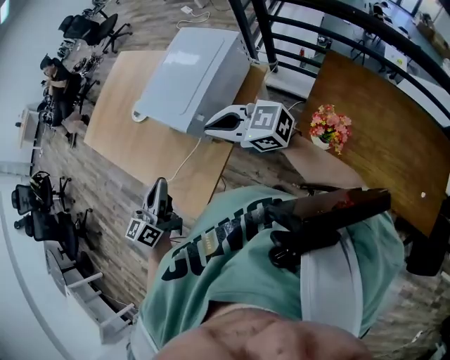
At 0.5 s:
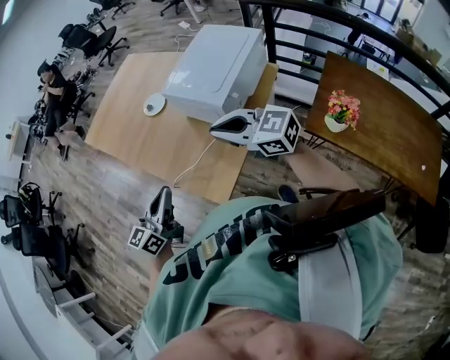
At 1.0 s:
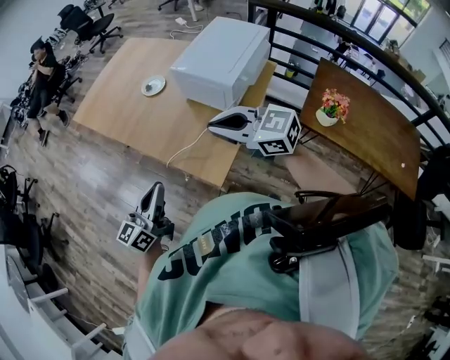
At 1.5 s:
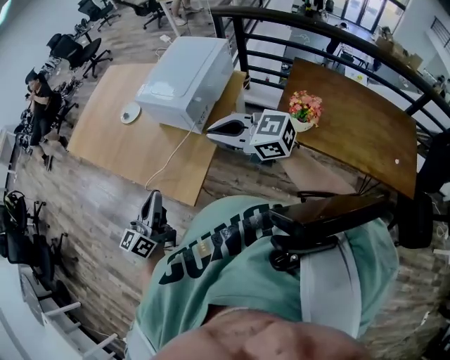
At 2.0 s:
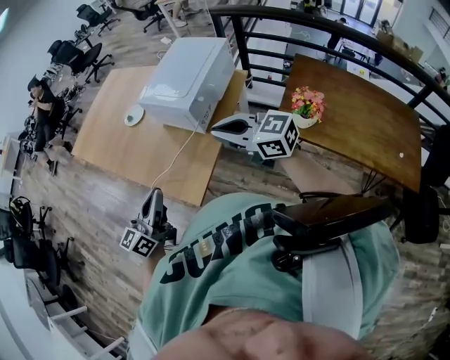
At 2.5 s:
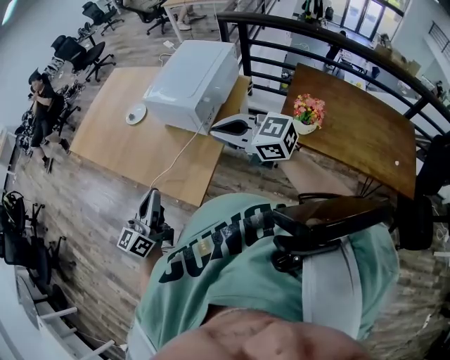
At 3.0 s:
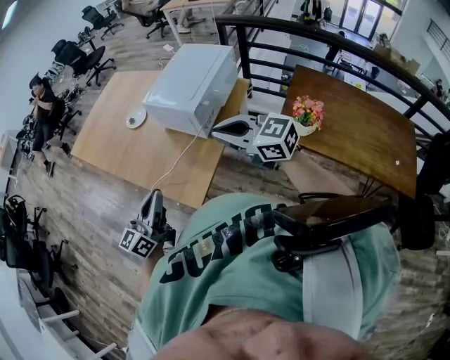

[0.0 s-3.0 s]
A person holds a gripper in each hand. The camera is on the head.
0.0 to 1.5 s: The left gripper travels to the left and backward by roughly 20 cm. The right gripper is displaced backward and to the left by some 15 cm.
1.5 to 3.0 s: The grippers make only small movements.

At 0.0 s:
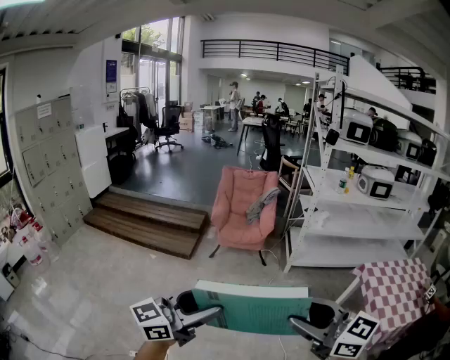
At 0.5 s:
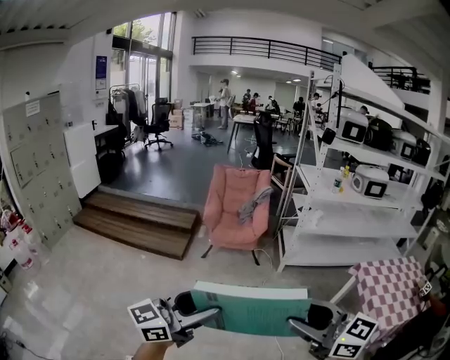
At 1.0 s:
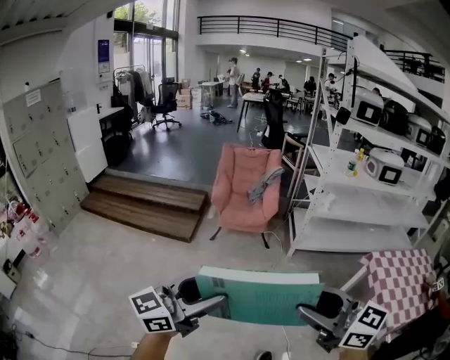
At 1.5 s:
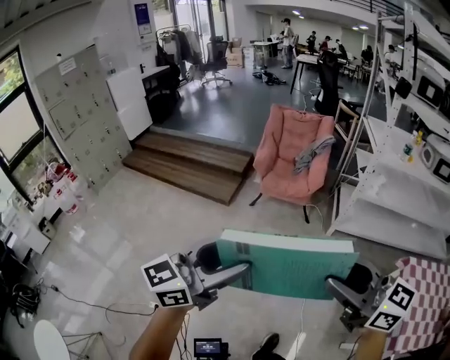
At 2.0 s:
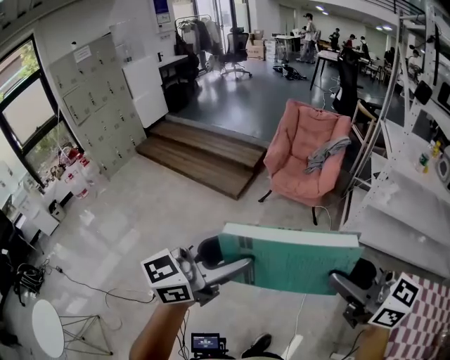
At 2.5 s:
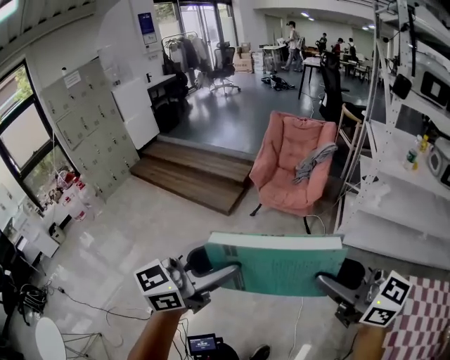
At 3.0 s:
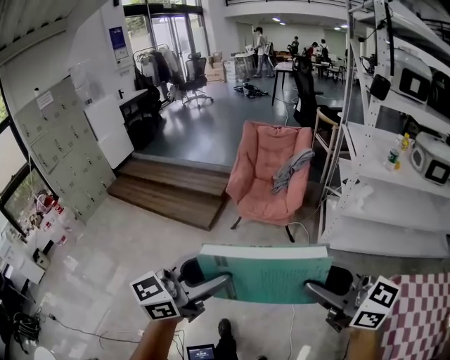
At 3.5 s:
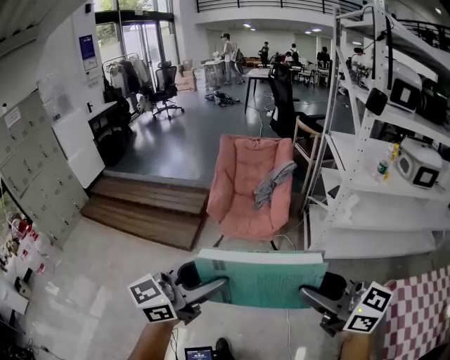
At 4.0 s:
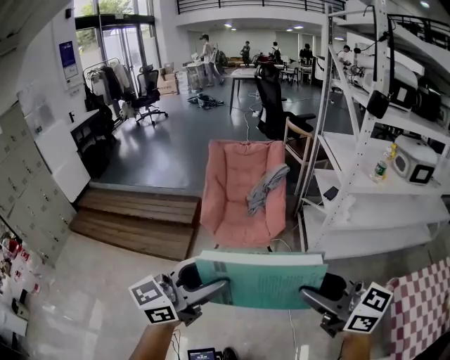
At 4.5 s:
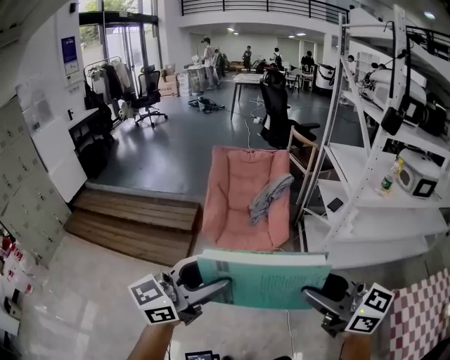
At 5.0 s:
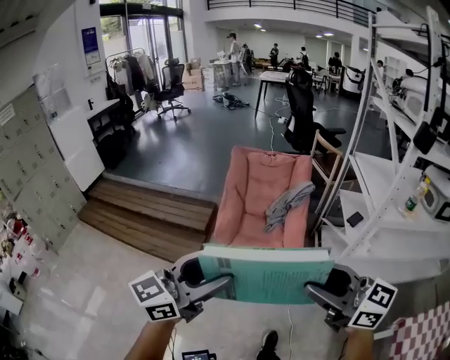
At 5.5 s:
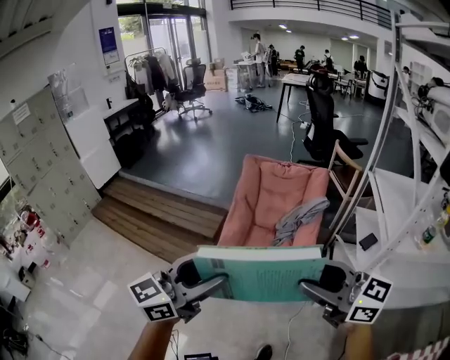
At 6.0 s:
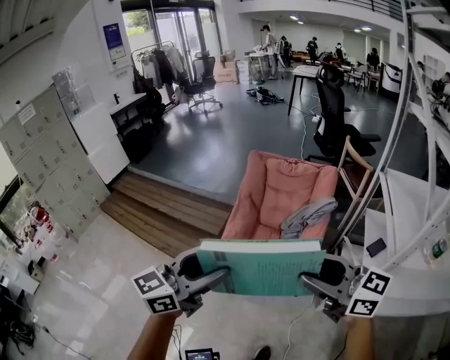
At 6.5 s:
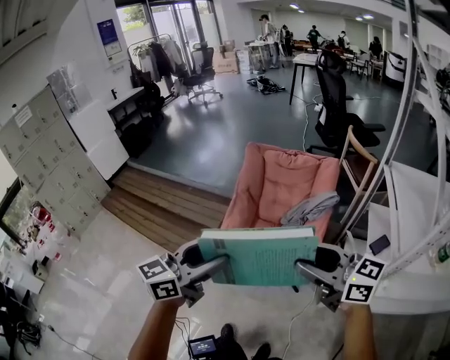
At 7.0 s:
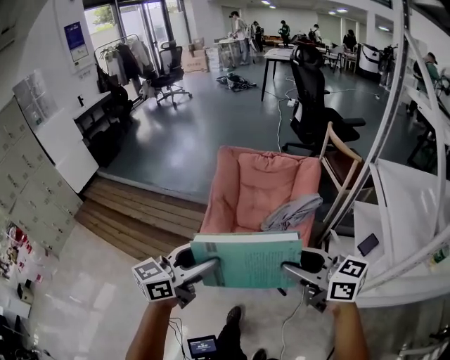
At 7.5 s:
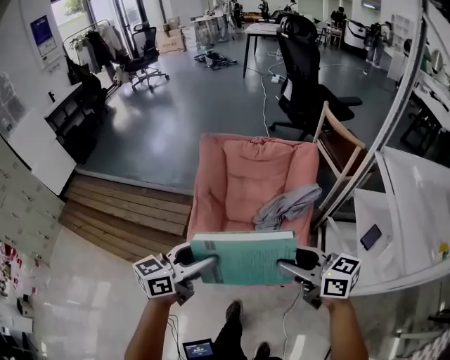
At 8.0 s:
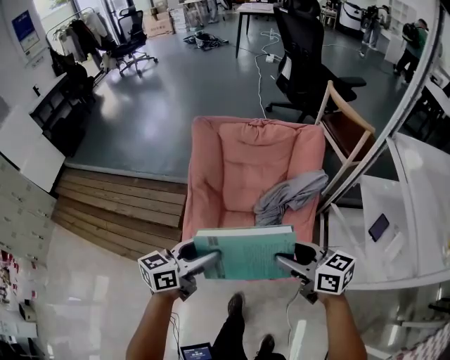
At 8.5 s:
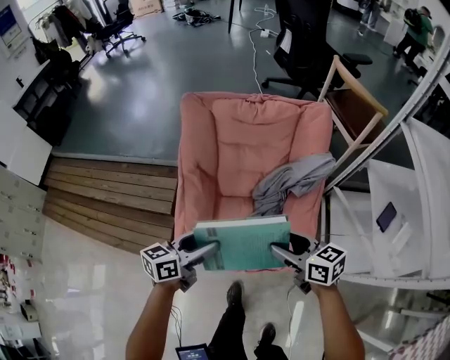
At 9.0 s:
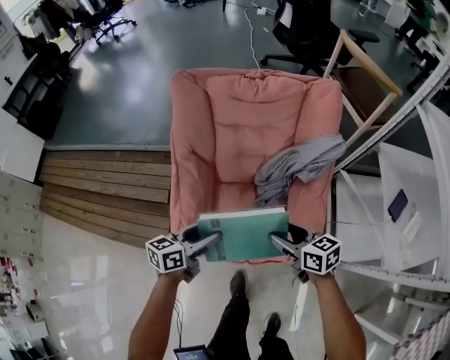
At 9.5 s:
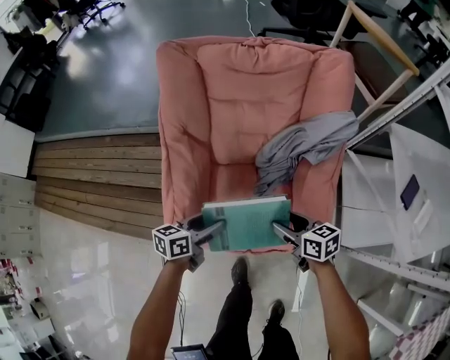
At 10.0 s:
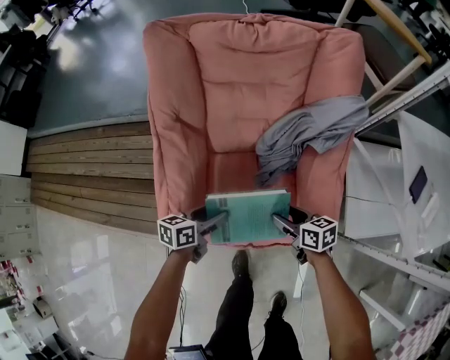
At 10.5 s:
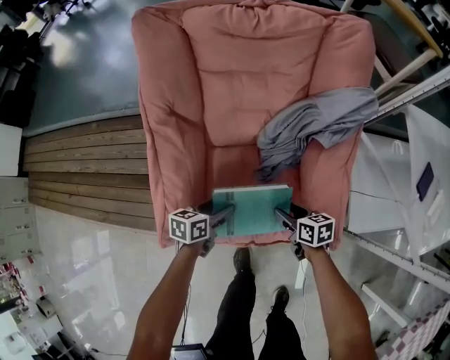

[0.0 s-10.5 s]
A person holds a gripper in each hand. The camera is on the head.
0.0 to 2.0 s: The grippers both shift forward by roughly 25 cm.
2.0 to 4.0 s: Both grippers move forward, about 30 cm.
4.0 to 6.5 s: The pair of grippers is taken forward, approximately 40 cm. The right gripper turns by roughly 20 degrees, while the left gripper changes its angle by approximately 20 degrees.
6.5 to 8.5 s: The grippers both shift downward and forward by approximately 50 cm. The left gripper rotates roughly 30 degrees, while the right gripper swivels about 30 degrees.
8.5 to 10.5 s: The two grippers go roughly 35 cm downward. The right gripper swivels roughly 30 degrees. The left gripper rotates roughly 30 degrees.

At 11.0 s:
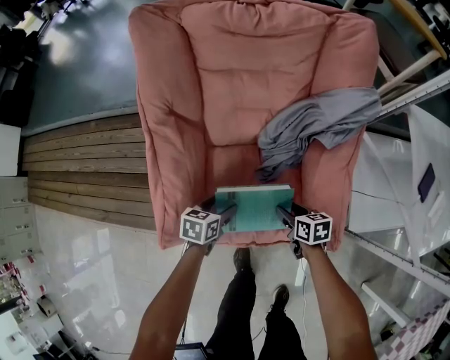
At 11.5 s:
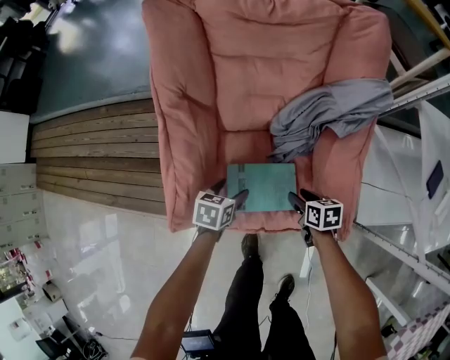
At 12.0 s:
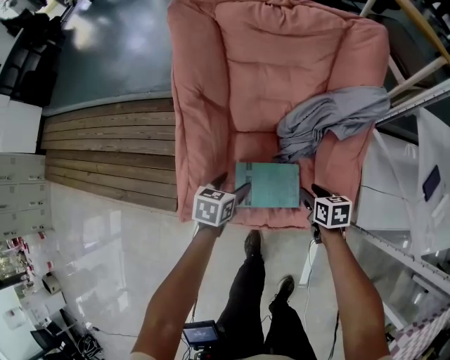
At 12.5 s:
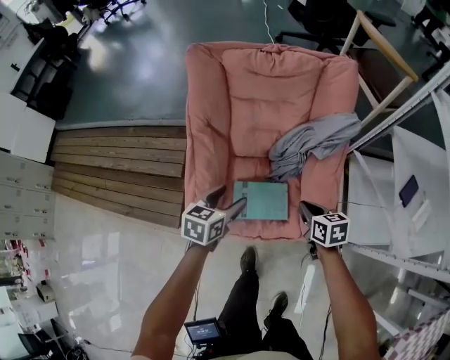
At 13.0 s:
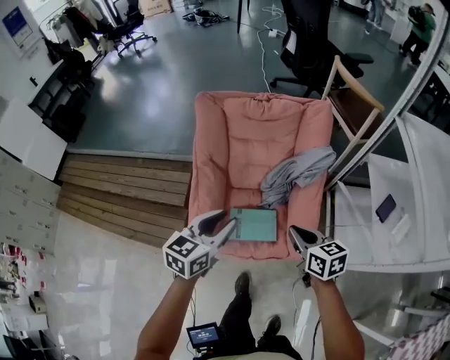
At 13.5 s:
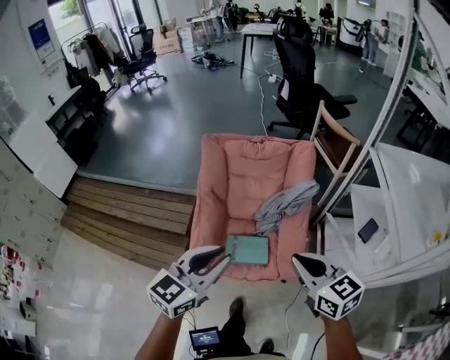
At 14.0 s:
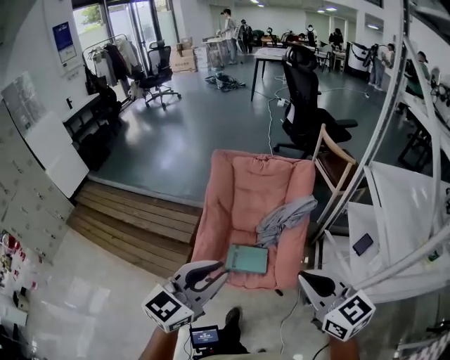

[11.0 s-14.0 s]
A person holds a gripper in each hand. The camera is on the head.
11.0 to 12.5 s: Both grippers move upward, some 25 cm. The right gripper closes its fingers.
12.5 to 14.0 s: Both grippers travel together upward and backward, some 50 cm. The left gripper tilts its fingers some 30 degrees upward, and closes, while the right gripper tips its fingers upward by approximately 30 degrees.

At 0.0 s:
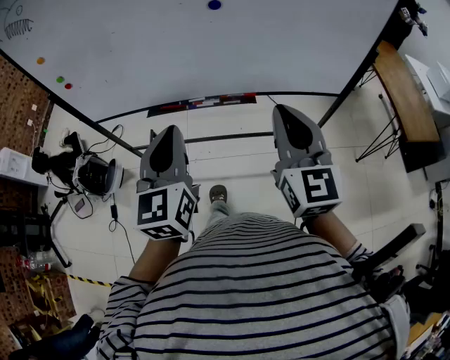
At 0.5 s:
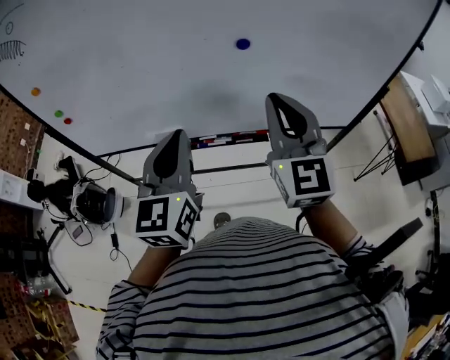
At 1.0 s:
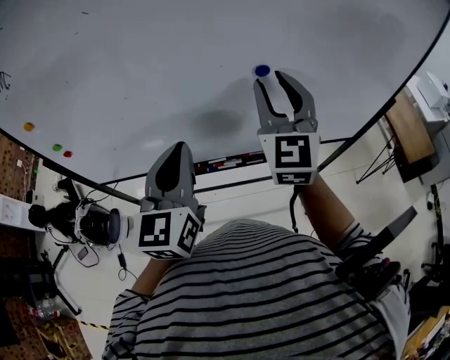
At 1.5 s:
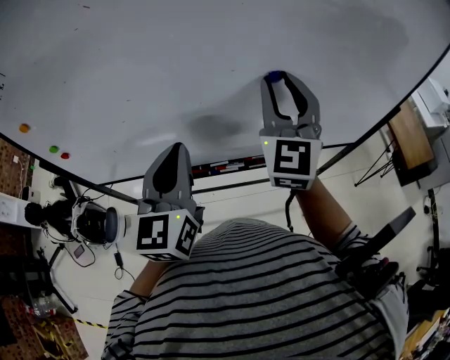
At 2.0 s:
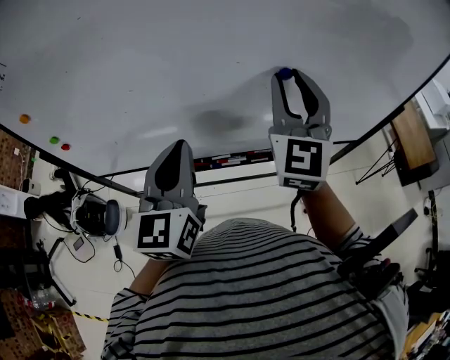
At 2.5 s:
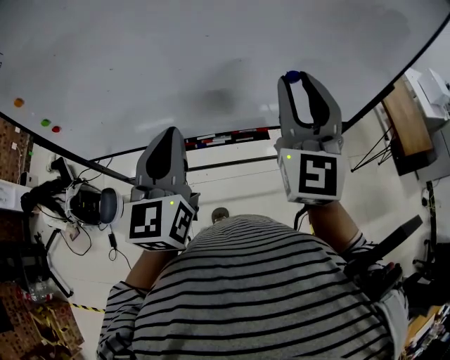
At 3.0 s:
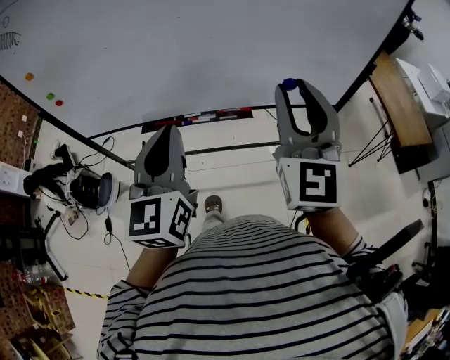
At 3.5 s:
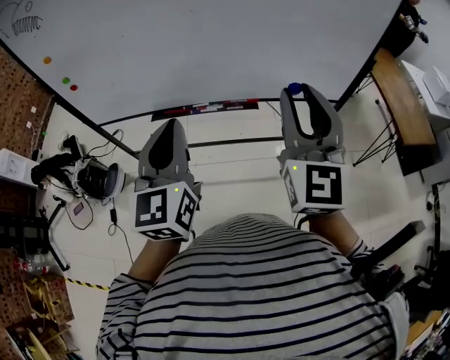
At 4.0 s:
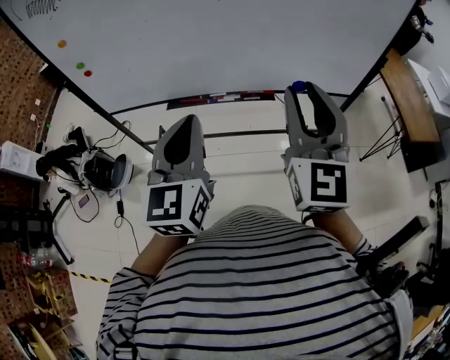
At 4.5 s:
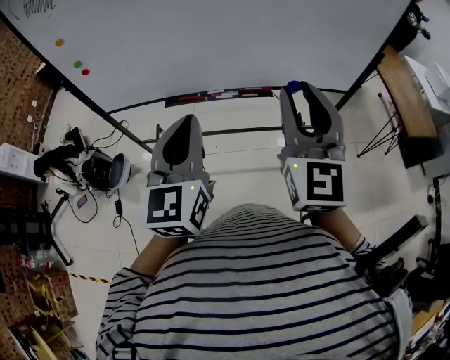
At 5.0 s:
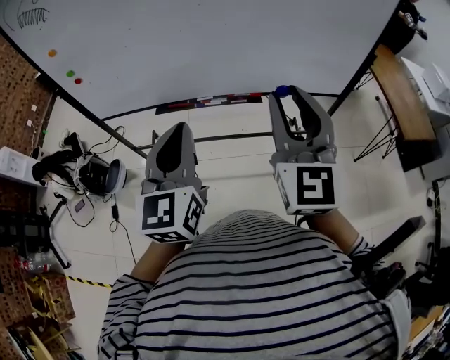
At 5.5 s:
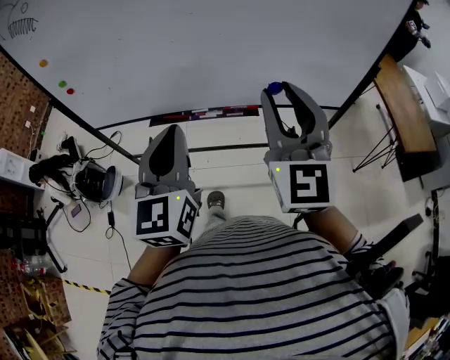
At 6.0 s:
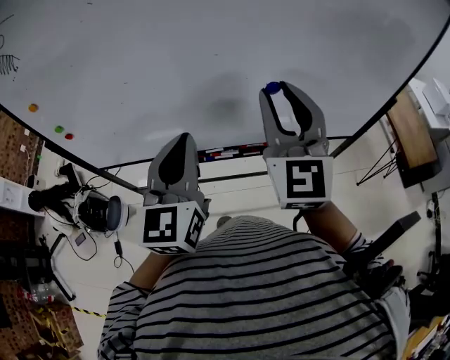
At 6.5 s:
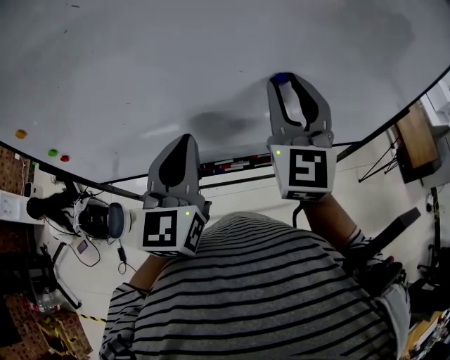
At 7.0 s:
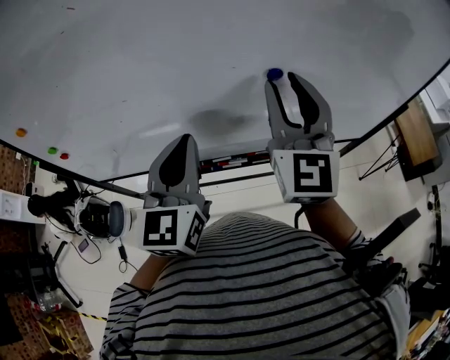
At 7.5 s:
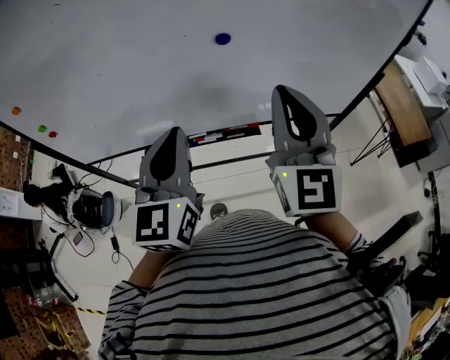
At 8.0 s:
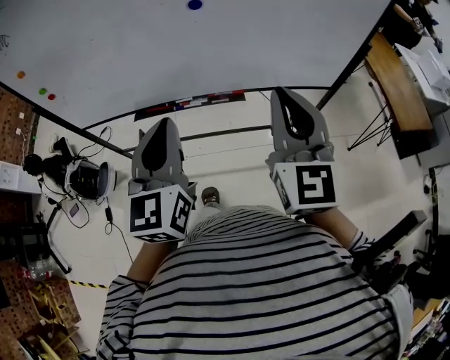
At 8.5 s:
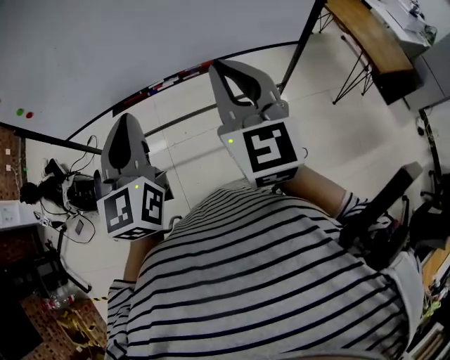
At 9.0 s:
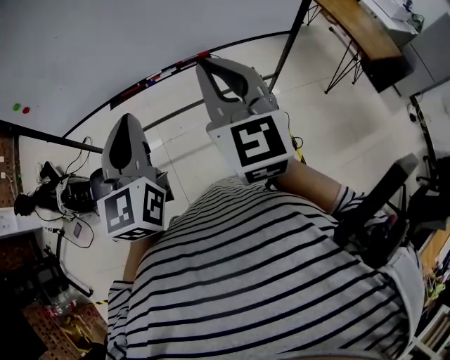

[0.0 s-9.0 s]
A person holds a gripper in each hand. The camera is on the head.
0.0 to 2.0 s: The two grippers go approximately 25 cm forward and to the left. The right gripper changes its angle by about 30 degrees, and opens.
2.0 to 4.5 s: The two grippers go about 25 cm backward.
4.5 to 7.0 s: The grippers both shift forward by some 25 cm.
7.0 to 9.0 s: The two grippers go approximately 25 cm backward. The right gripper closes its fingers.

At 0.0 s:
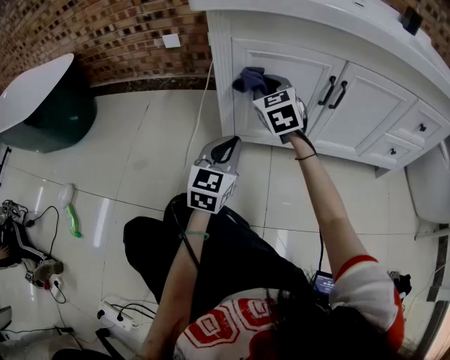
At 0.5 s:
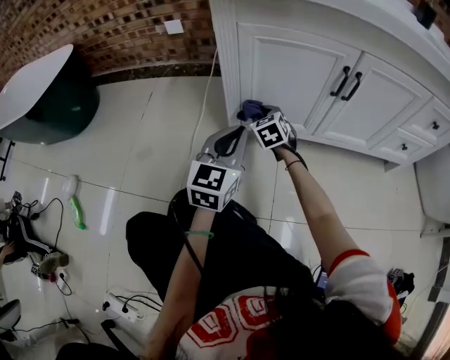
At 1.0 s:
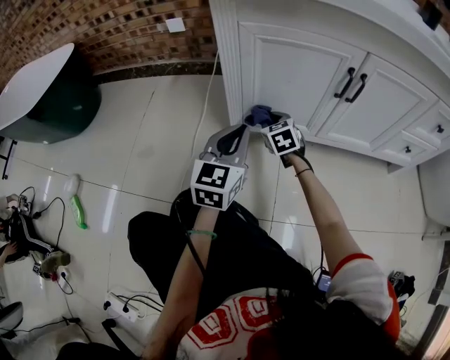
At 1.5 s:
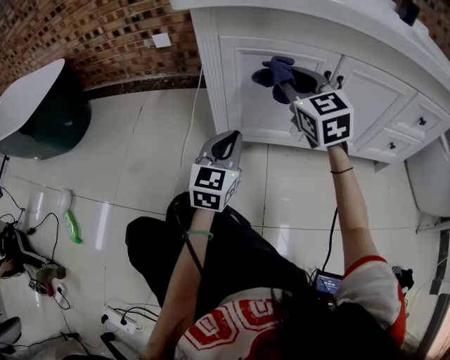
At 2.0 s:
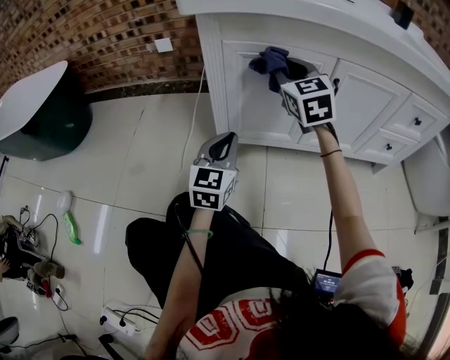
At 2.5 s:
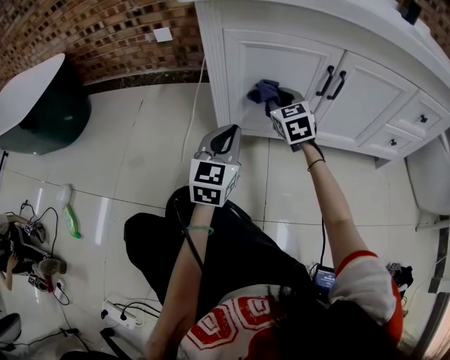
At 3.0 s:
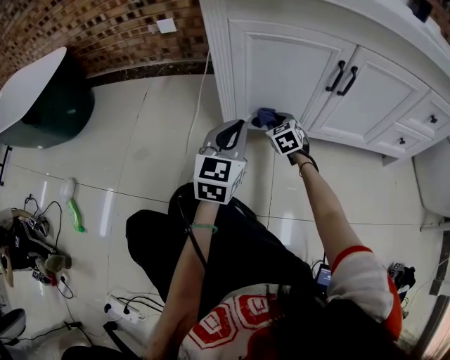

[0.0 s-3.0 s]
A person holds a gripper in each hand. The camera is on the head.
0.0 to 1.5 s: The right gripper heads to the right, covering approximately 5 cm, and goes downward and returns, roughly 20 cm each way.
1.5 to 3.0 s: The right gripper is displaced downward by about 30 cm, and changes its angle by some 30 degrees.
